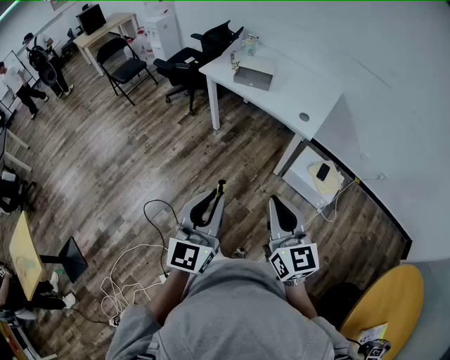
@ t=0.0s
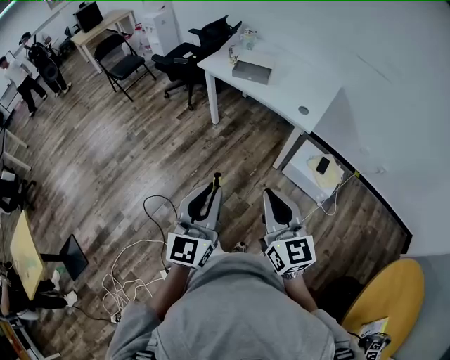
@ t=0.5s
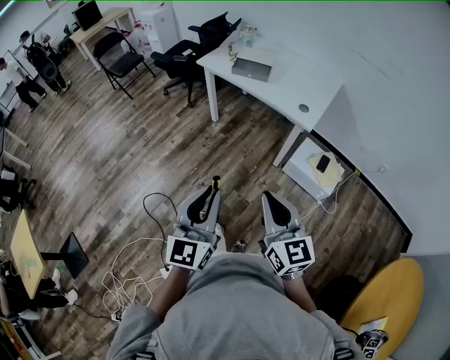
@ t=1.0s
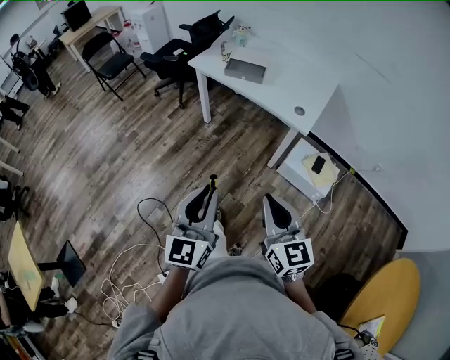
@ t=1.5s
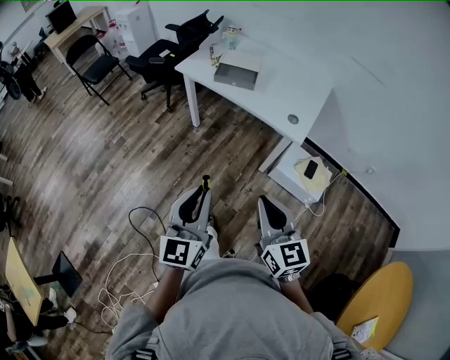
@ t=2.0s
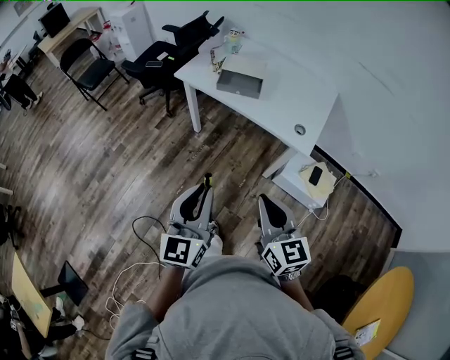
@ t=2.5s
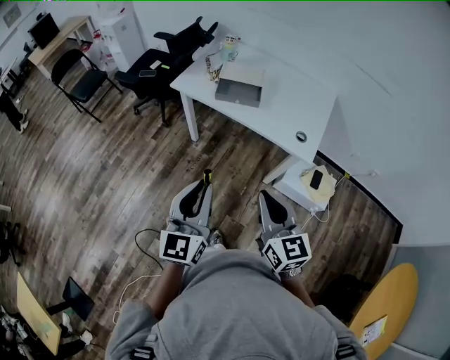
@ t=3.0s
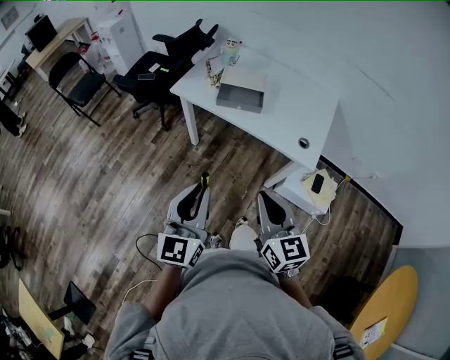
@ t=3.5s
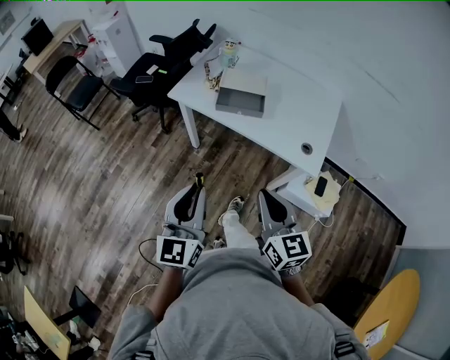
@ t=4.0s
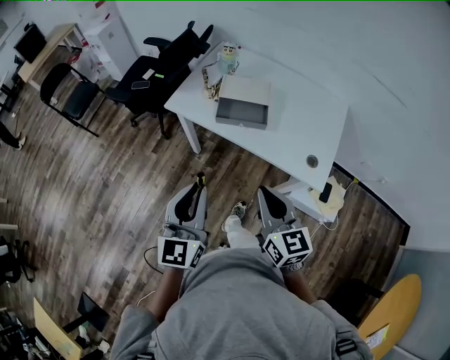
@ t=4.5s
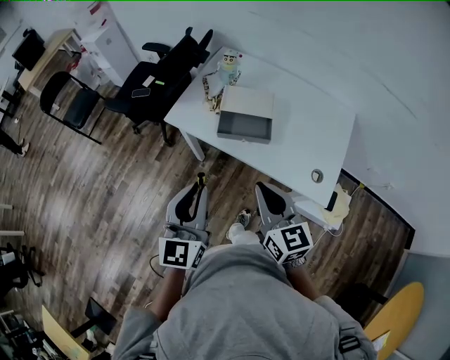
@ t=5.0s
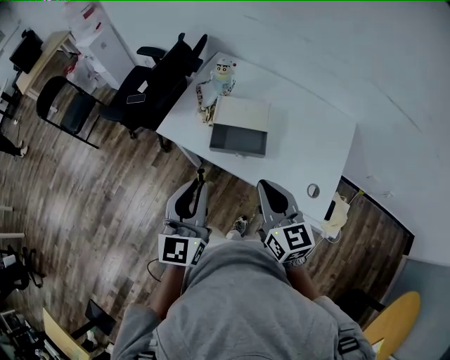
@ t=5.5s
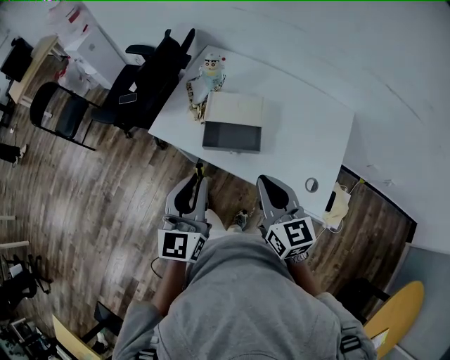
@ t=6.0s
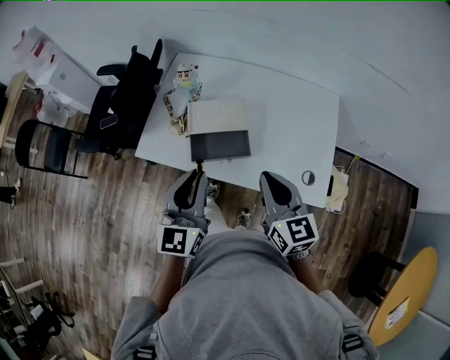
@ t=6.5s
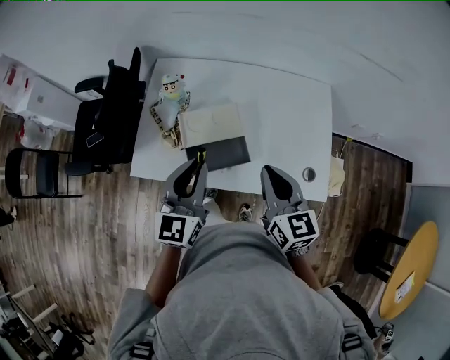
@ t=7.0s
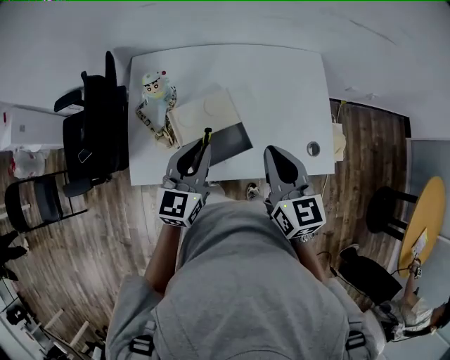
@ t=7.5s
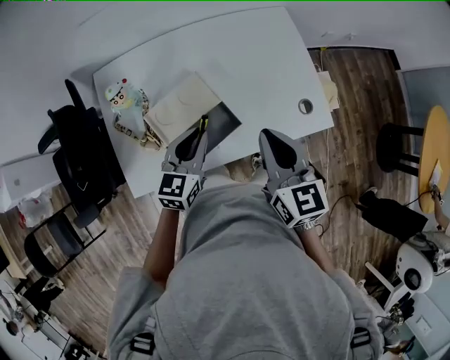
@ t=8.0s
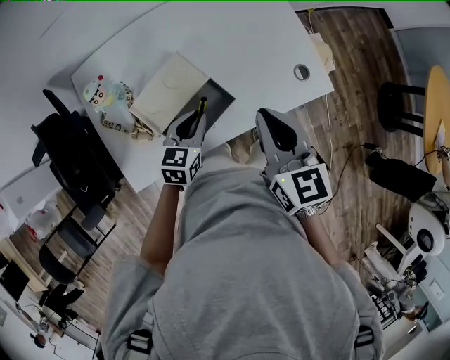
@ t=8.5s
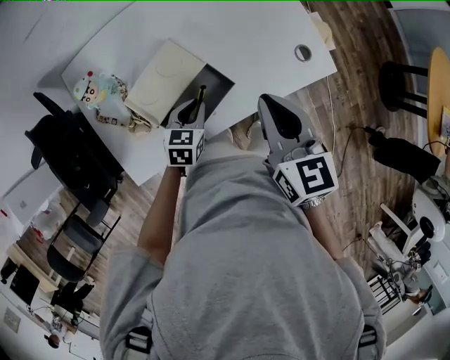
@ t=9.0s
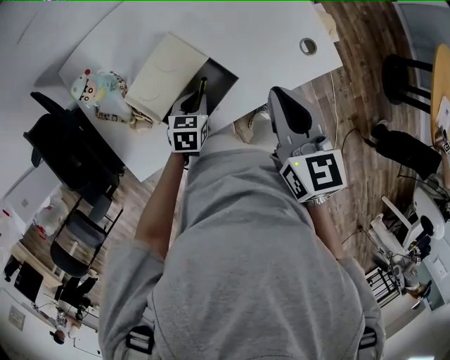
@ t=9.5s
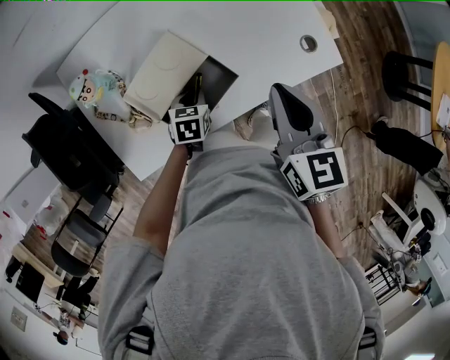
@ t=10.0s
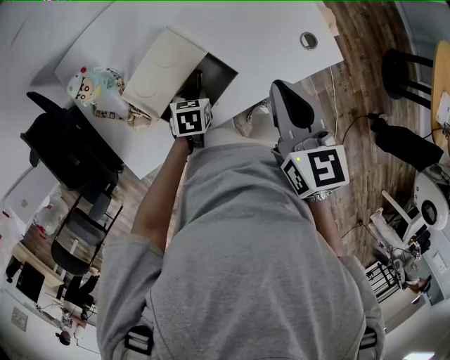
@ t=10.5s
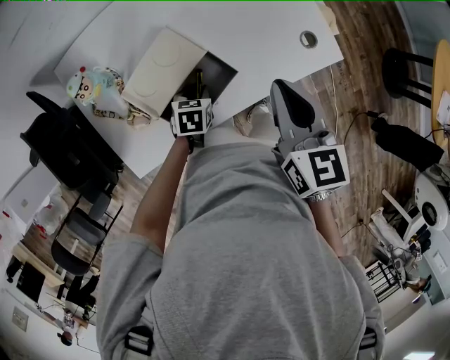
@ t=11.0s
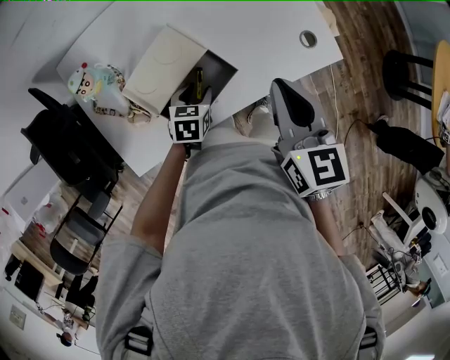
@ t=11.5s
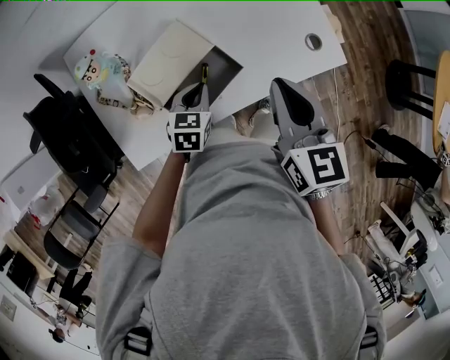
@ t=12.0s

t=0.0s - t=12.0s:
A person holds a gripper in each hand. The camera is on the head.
t=0.0s - t=2.0s: Both grippers travel together forward, some 15 cm.
t=2.0s - t=4.0s: The two grippers go approximately 25 cm forward.
t=4.0s - t=6.0s: Both grippers move forward, some 30 cm.
t=6.0s - t=8.0s: The right gripper changes place by approximately 10 cm, and changes its angle by roughly 40 degrees. Meanwhile the left gripper ends up approximately 30 cm from where it was, and turns by approximately 60 degrees.
t=8.0s - t=10.0s: The left gripper moves downward, some 20 cm, and tilts its fingers some 40 degrees downward.
t=10.0s - t=12.0s: The left gripper is displaced upward by approximately 5 cm, and opens, then closes once more.

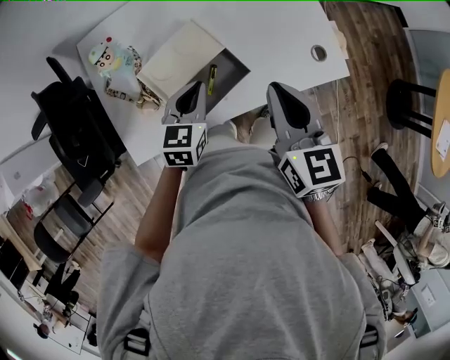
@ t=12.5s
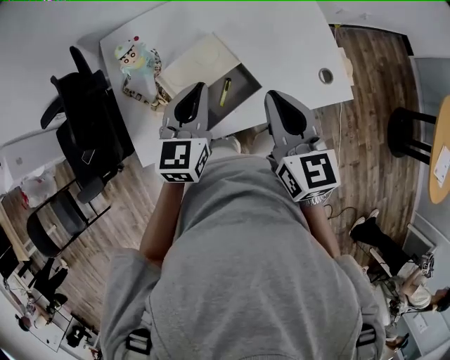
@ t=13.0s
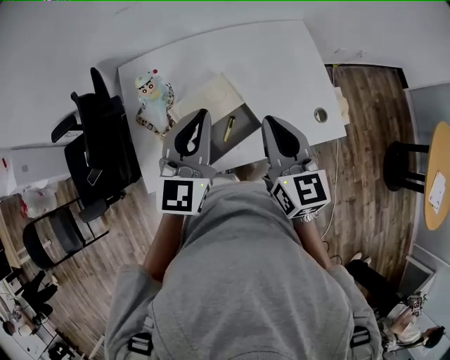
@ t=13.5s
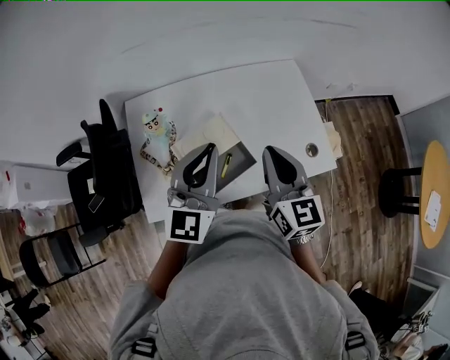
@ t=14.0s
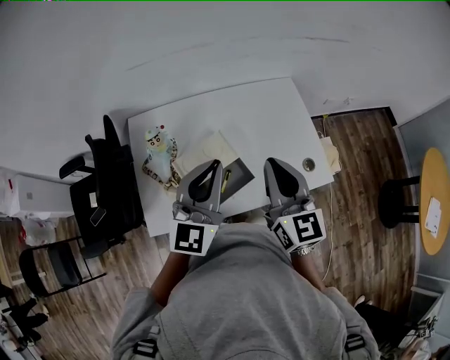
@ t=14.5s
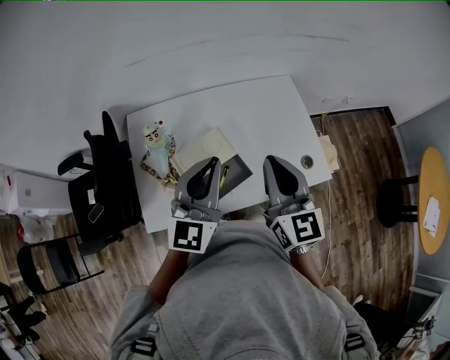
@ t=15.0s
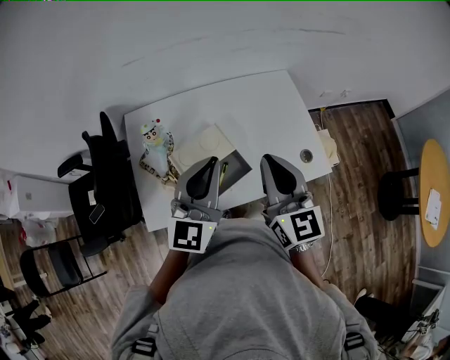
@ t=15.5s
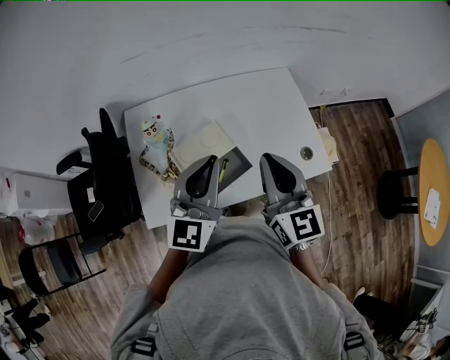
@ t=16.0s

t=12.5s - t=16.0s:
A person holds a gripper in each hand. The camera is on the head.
t=12.5s - t=14.5s: The left gripper heads upward, covering approximately 25 cm, and tilts its fingers roughly 30 degrees upward. Meanwhile the right gripper goes approximately 10 cm upward, and rotates approximately 20 degrees.
t=14.5s - t=16.0s: There are only small adjustments of the grippers.

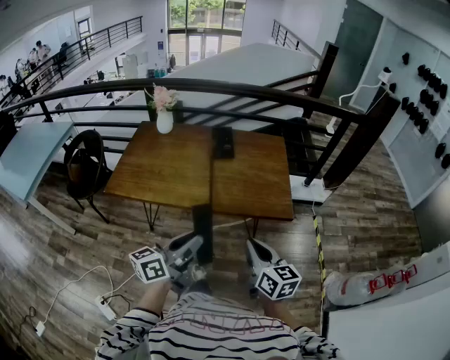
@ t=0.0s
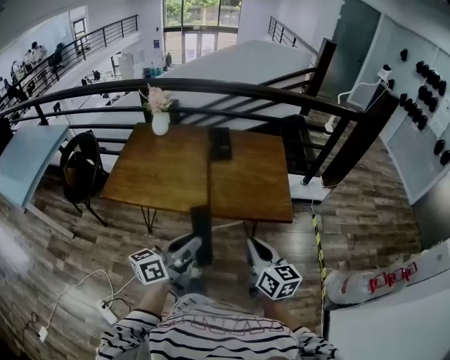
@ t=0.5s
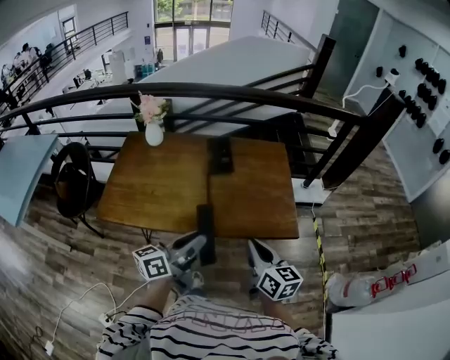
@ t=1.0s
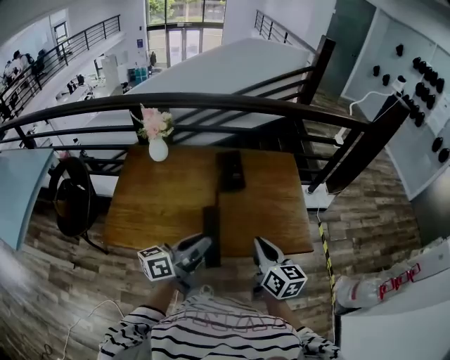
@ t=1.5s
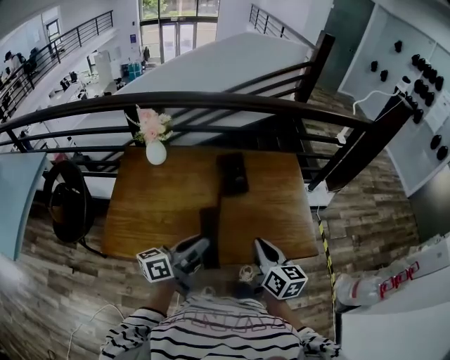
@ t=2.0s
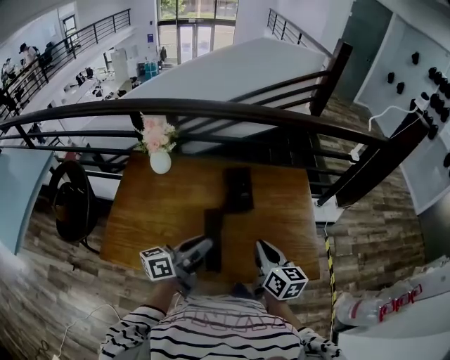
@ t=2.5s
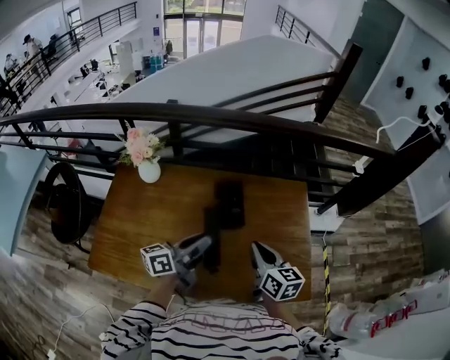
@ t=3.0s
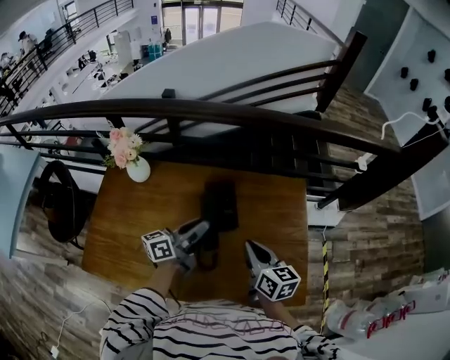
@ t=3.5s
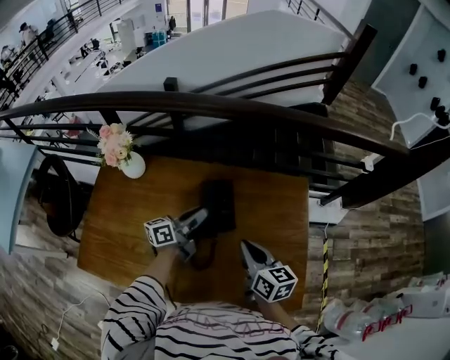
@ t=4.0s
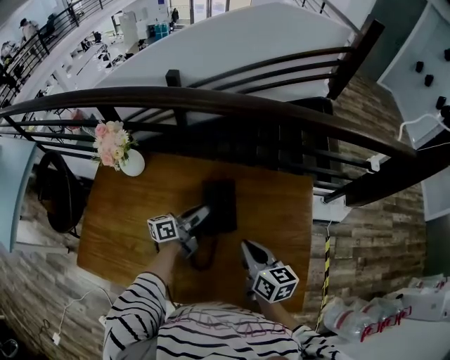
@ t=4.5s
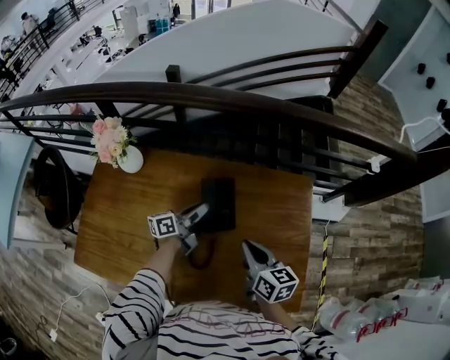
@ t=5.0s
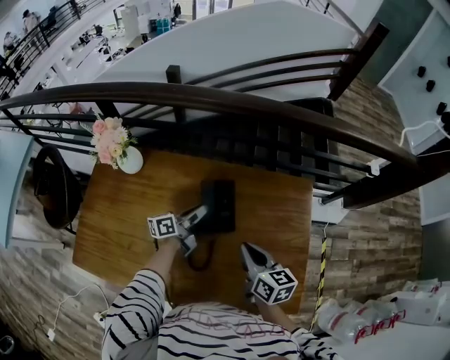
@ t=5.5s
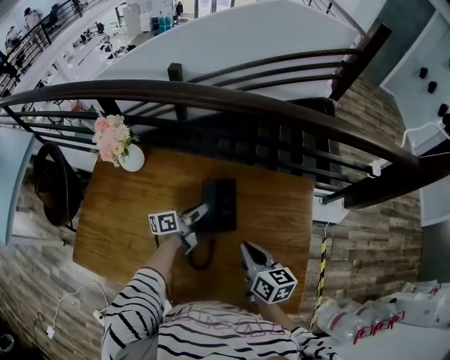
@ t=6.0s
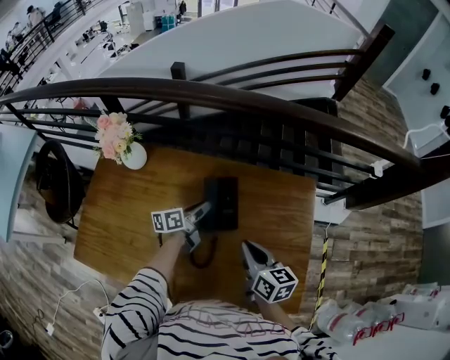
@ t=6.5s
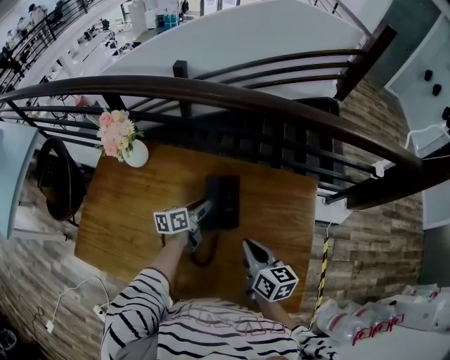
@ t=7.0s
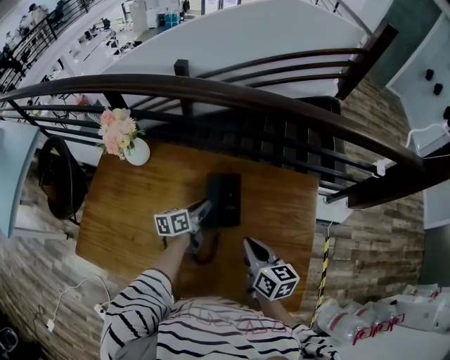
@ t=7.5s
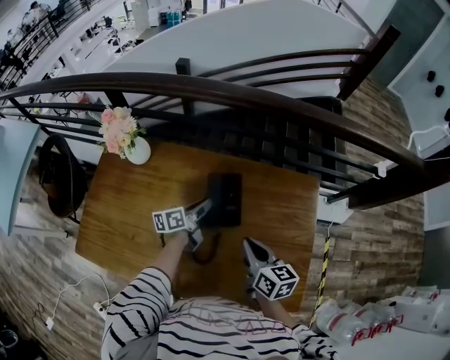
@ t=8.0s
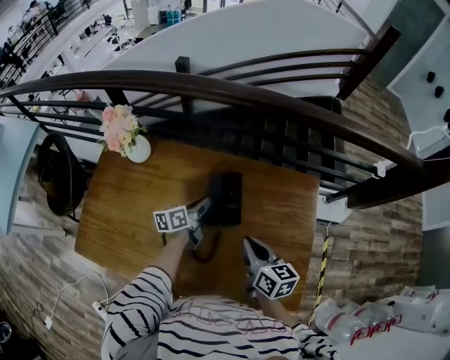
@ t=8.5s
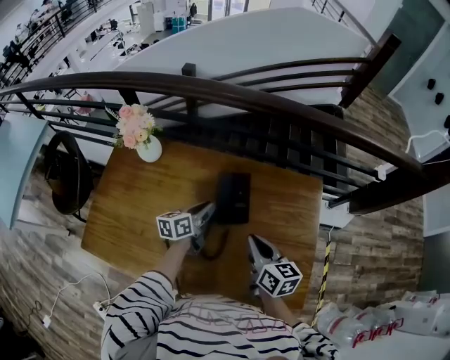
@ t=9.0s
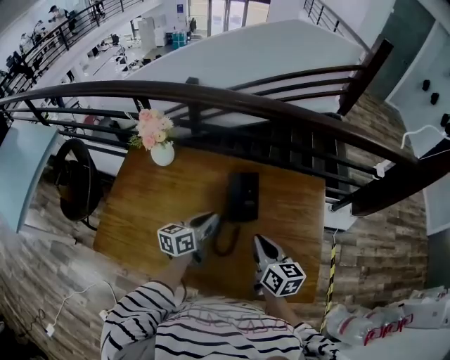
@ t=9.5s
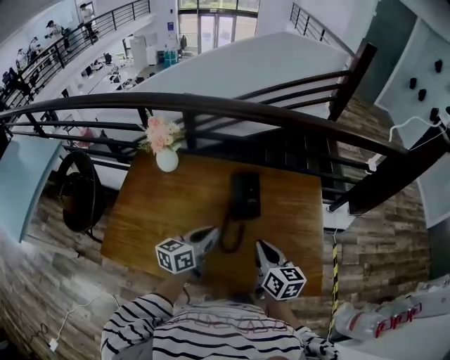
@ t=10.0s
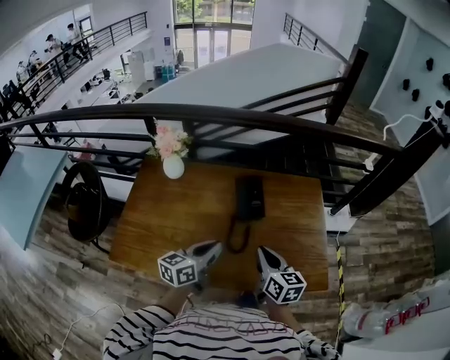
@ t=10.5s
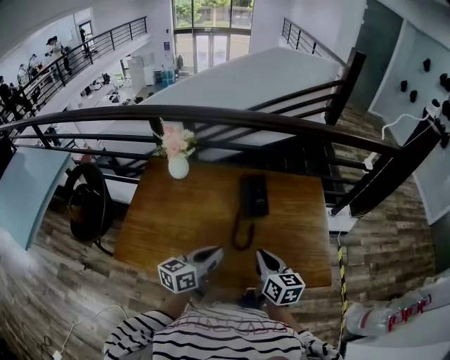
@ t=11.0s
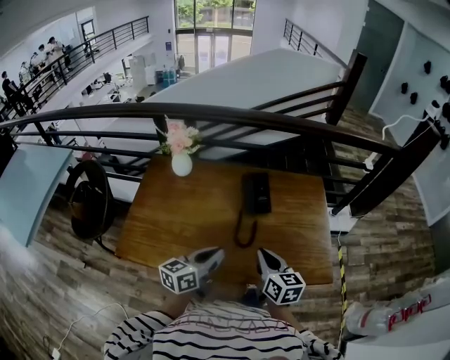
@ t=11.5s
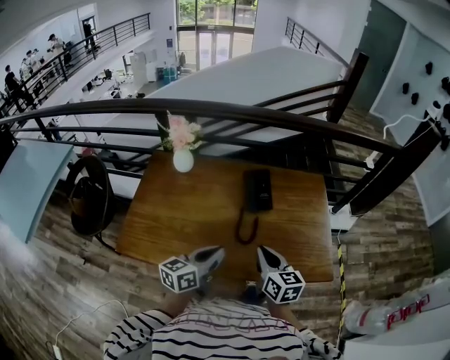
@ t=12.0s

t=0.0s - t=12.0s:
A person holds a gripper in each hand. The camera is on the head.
t=0.0s - t=2.0s: The two grippers go roughly 35 cm forward and to the left.
t=2.0s - t=4.0s: The two grippers go about 35 cm forward.
t=4.0s - t=6.0s: The left gripper heads downward, covering about 10 cm.
t=8.0s - t=10.0s: The left gripper goes some 30 cm backward and upward, and rotates roughly 30 degrees; the right gripper heads backward, upward and to the left, covering roughly 20 cm.
t=10.0s - t=12.0s: The two grippers go some 15 cm backward.
